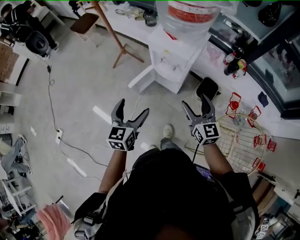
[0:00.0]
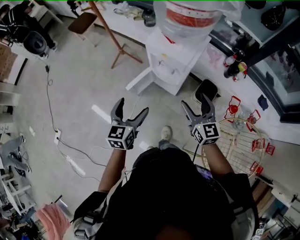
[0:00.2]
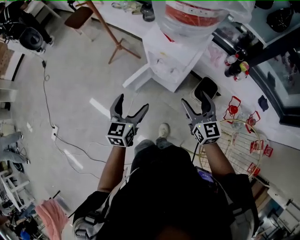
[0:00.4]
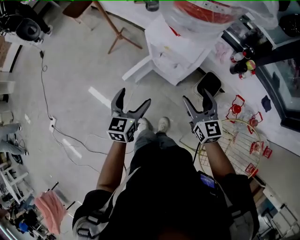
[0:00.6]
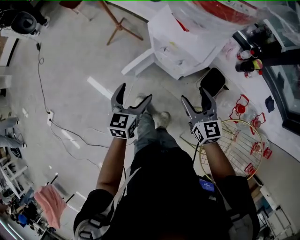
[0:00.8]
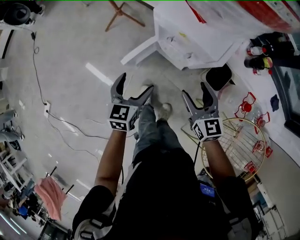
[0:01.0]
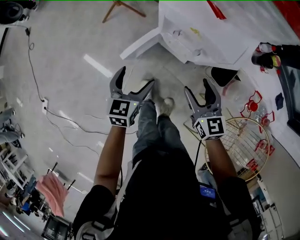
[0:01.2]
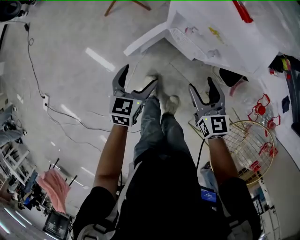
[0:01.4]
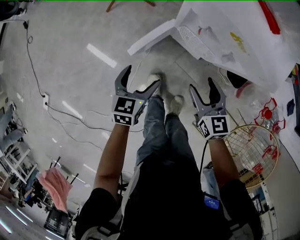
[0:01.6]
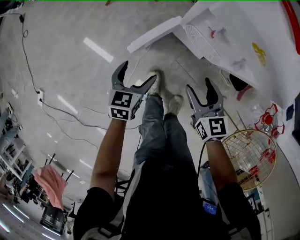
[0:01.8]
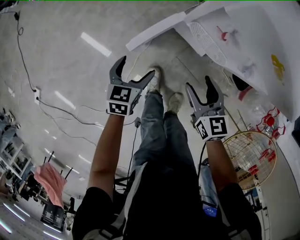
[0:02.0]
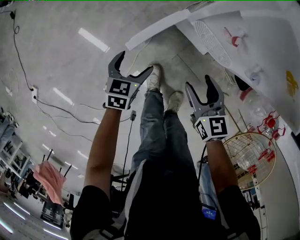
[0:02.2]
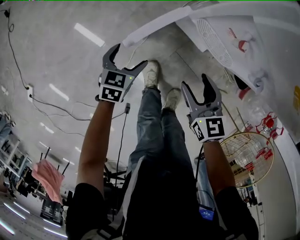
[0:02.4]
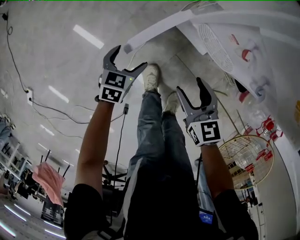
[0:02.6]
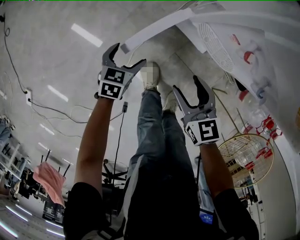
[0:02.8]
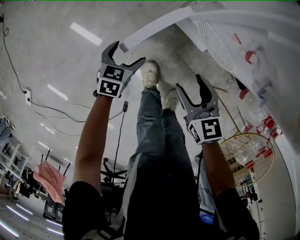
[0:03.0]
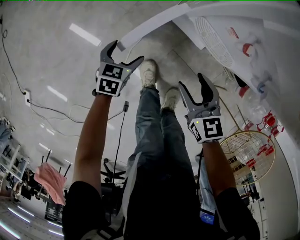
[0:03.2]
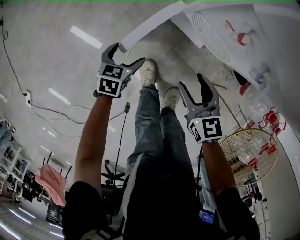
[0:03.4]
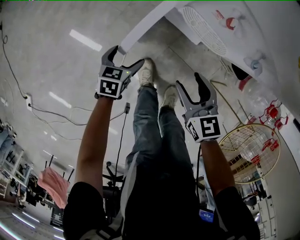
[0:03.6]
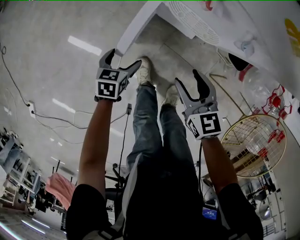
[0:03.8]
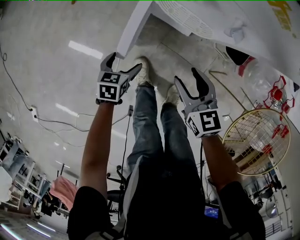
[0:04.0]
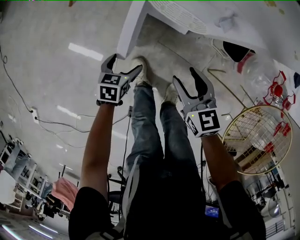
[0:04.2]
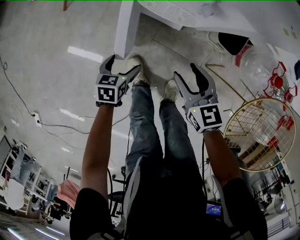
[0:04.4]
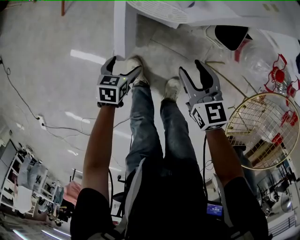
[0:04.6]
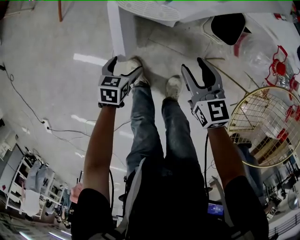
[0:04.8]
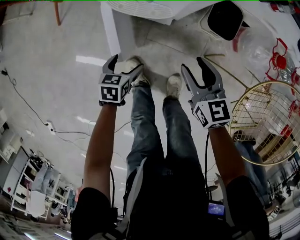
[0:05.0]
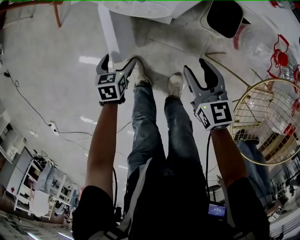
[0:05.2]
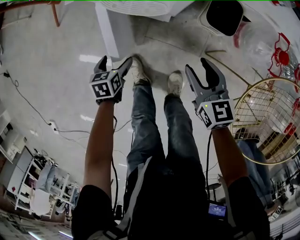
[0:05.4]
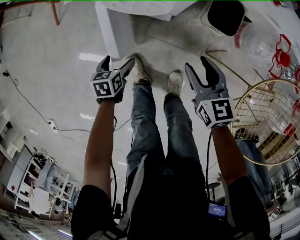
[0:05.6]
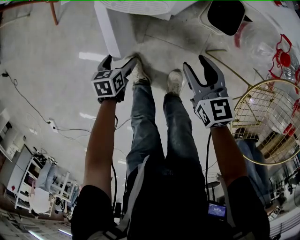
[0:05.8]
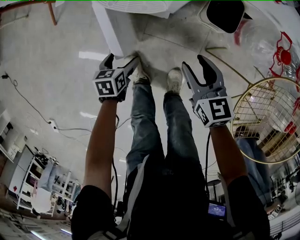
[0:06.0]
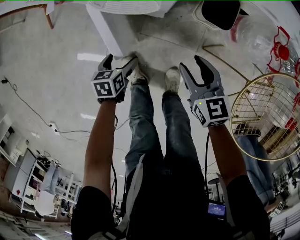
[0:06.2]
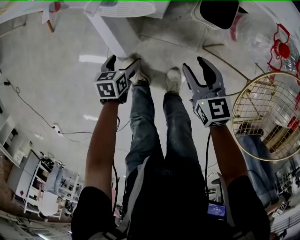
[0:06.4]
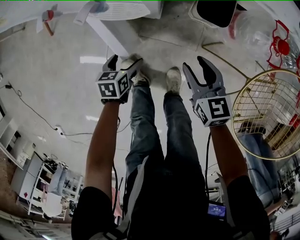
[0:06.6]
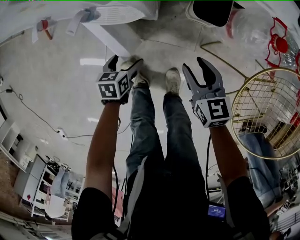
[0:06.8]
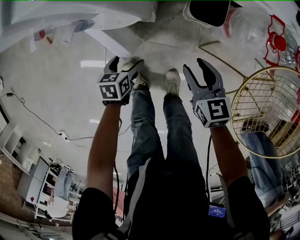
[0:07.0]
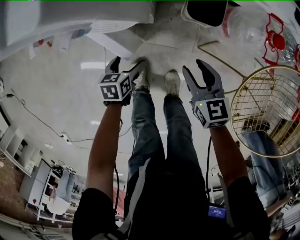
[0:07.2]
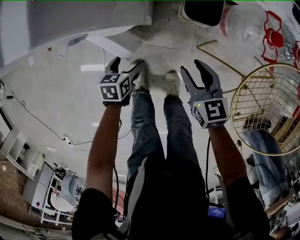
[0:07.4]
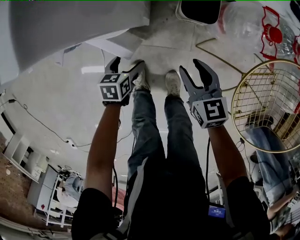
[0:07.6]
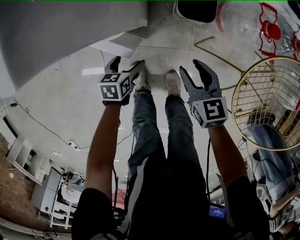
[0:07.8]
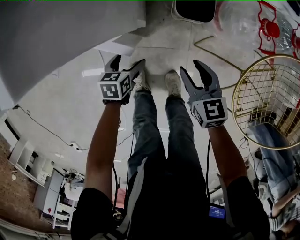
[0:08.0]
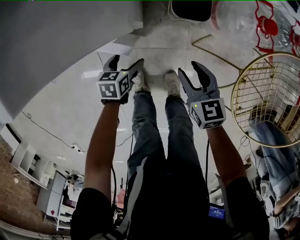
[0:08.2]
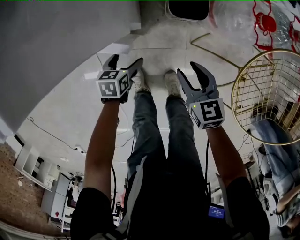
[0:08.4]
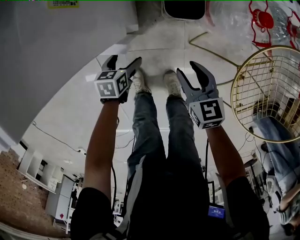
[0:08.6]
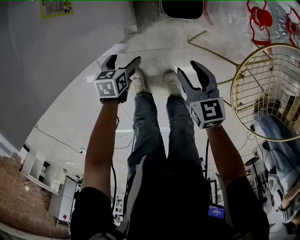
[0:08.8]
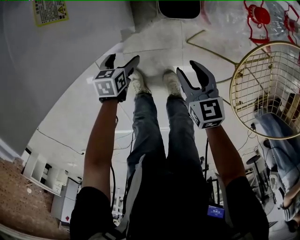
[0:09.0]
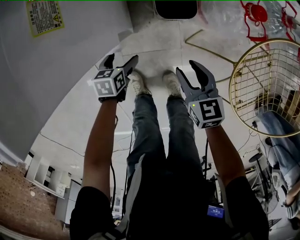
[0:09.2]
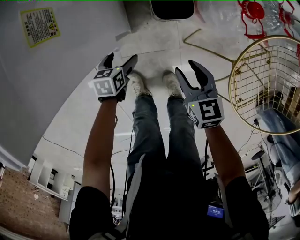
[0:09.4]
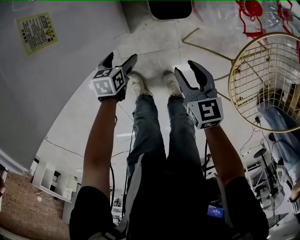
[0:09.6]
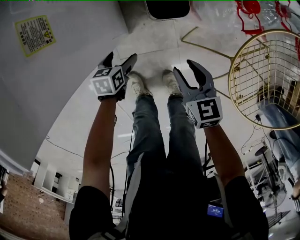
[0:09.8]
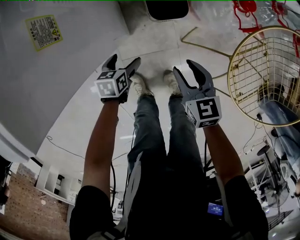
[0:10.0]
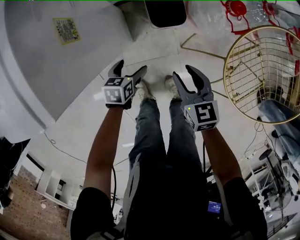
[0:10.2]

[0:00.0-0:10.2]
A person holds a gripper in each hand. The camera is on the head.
0:00.0 to 0:01.4: Both grippers move downward and forward, about 30 cm.
0:01.4 to 0:03.0: The right gripper moves downward and to the left, roughly 20 cm; the left gripper heads downward, covering approximately 25 cm.
0:03.0 to 0:04.4: Both grippers move to the right and backward, roughly 15 cm.
0:04.4 to 0:05.8: The right gripper moves to the right, some 10 cm. Meanwhile the left gripper shifts by about 5 cm.
0:05.8 to 0:07.2: The grippers both shift to the right by some 10 cm.
0:07.2 to 0:08.8: The left gripper goes about 10 cm forward.
0:08.8 to 0:10.2: The two grippers go roughly 5 cm upward.

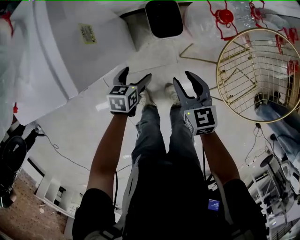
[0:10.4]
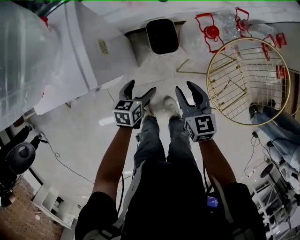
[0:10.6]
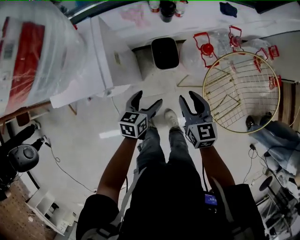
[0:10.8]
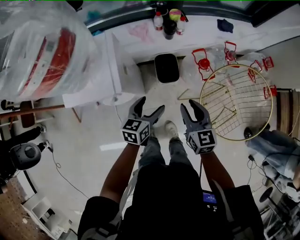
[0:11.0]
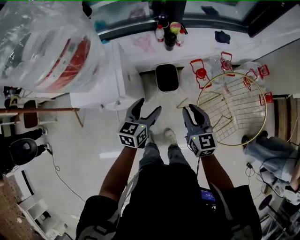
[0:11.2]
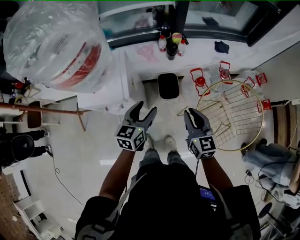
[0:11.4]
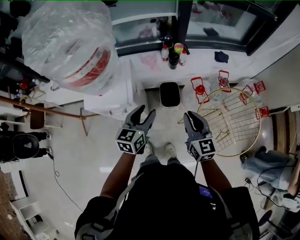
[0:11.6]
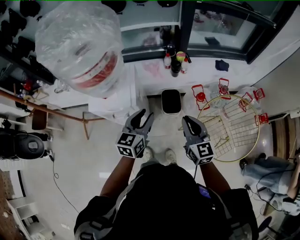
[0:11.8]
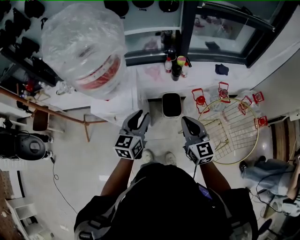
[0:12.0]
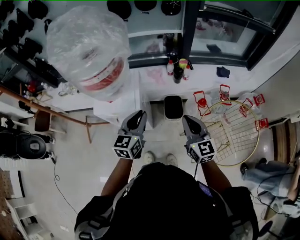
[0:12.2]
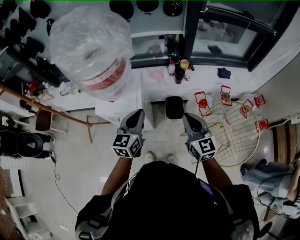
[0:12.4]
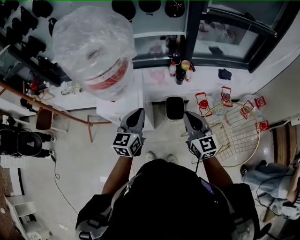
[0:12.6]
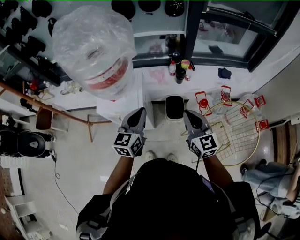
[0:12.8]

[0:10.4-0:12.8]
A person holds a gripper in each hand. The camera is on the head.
0:10.4 to 0:11.6: The two grippers go some 40 cm upward. The left gripper rotates approximately 40 degrees, and closes its fingers; the right gripper swivels some 30 degrees.
0:11.6 to 0:12.8: The left gripper heads upward and to the left, covering approximately 10 cm, and closes up. The right gripper goes some 10 cm upward.

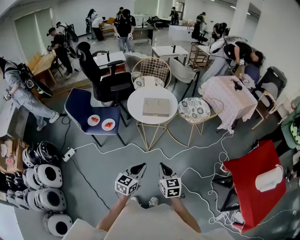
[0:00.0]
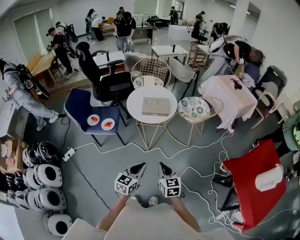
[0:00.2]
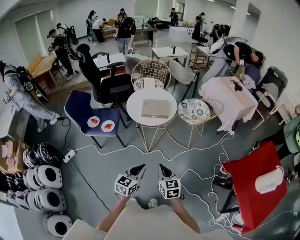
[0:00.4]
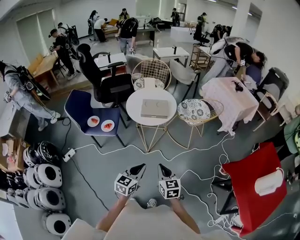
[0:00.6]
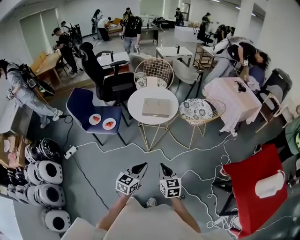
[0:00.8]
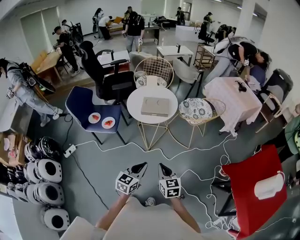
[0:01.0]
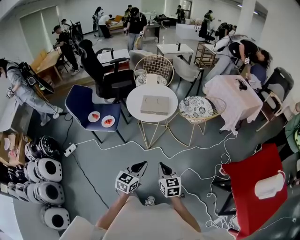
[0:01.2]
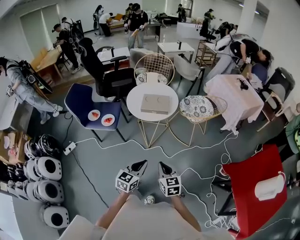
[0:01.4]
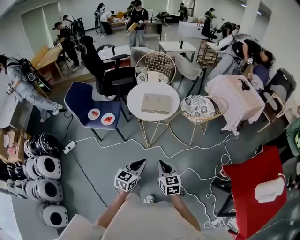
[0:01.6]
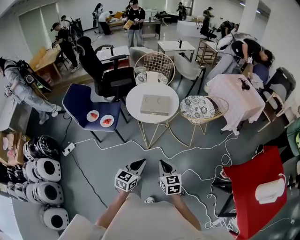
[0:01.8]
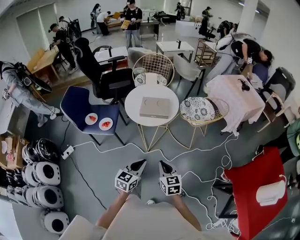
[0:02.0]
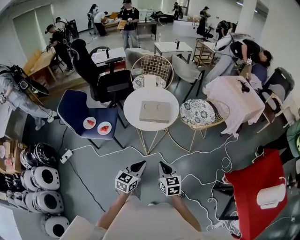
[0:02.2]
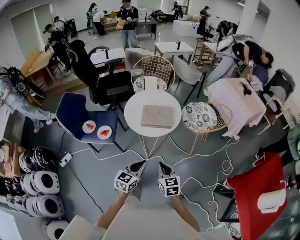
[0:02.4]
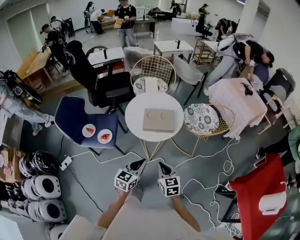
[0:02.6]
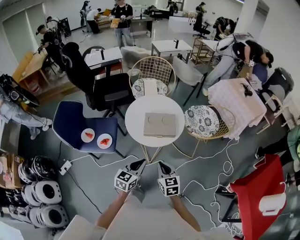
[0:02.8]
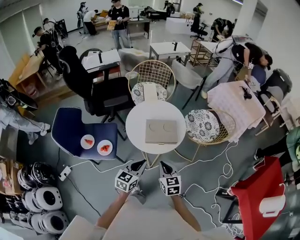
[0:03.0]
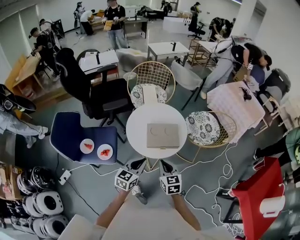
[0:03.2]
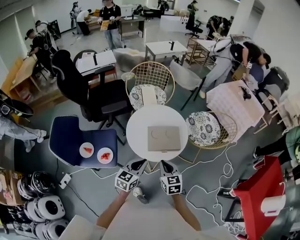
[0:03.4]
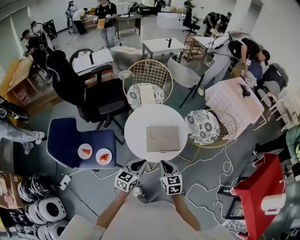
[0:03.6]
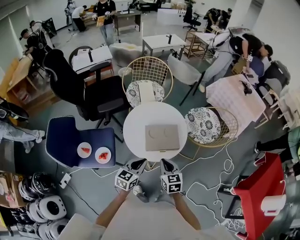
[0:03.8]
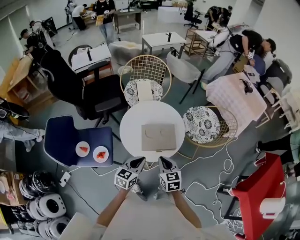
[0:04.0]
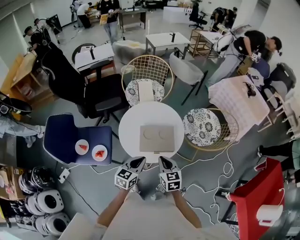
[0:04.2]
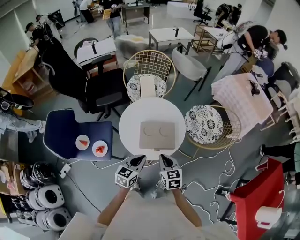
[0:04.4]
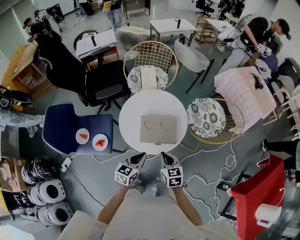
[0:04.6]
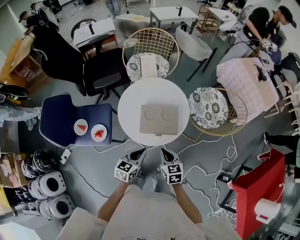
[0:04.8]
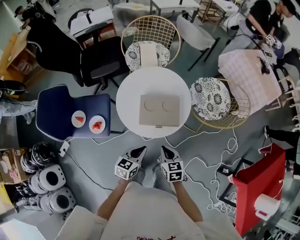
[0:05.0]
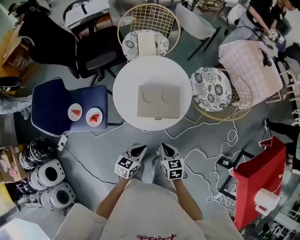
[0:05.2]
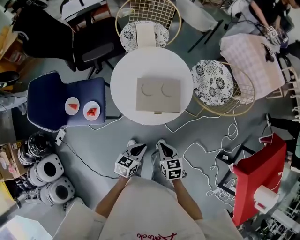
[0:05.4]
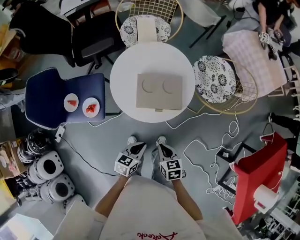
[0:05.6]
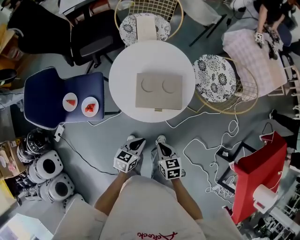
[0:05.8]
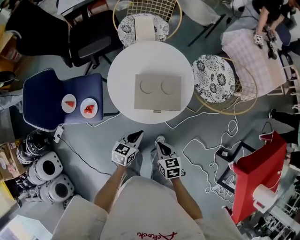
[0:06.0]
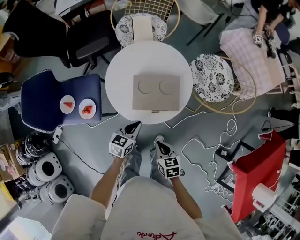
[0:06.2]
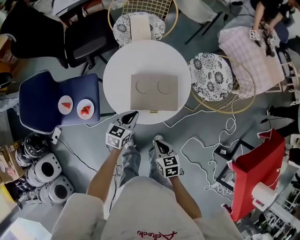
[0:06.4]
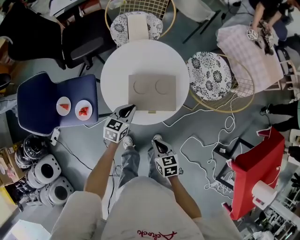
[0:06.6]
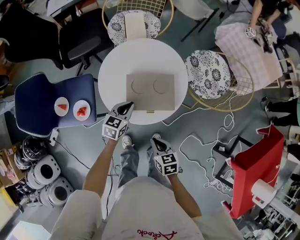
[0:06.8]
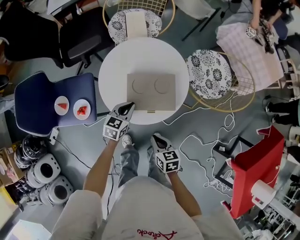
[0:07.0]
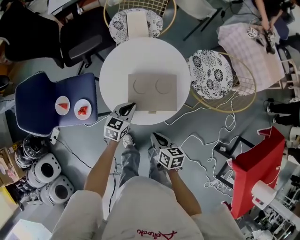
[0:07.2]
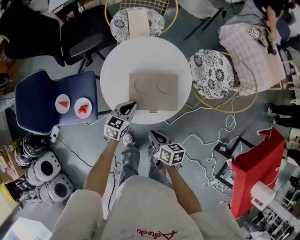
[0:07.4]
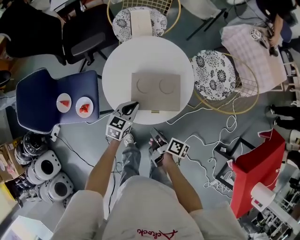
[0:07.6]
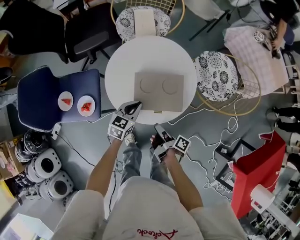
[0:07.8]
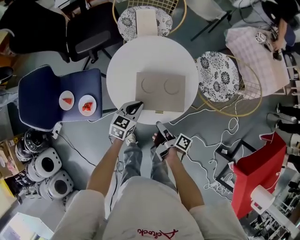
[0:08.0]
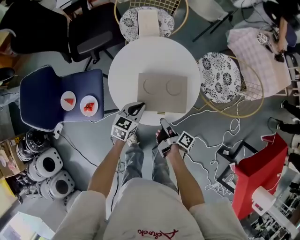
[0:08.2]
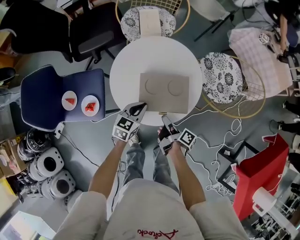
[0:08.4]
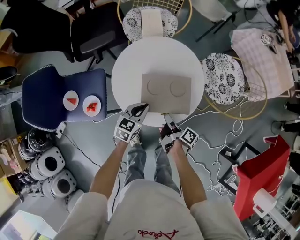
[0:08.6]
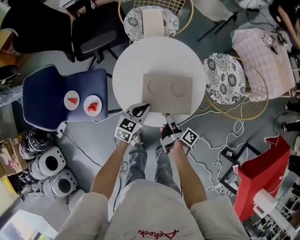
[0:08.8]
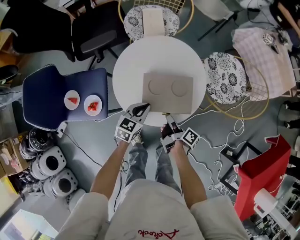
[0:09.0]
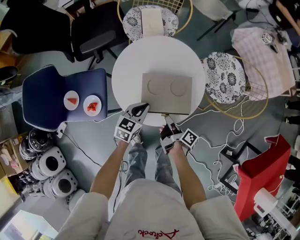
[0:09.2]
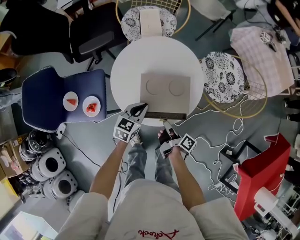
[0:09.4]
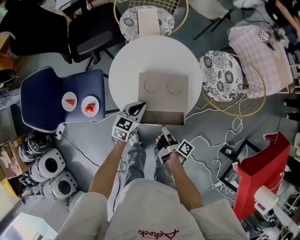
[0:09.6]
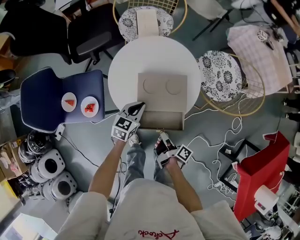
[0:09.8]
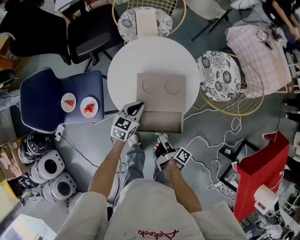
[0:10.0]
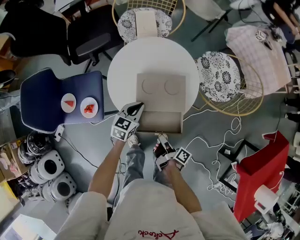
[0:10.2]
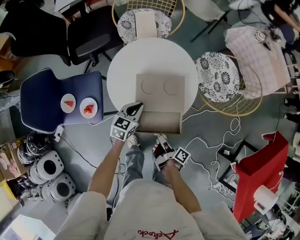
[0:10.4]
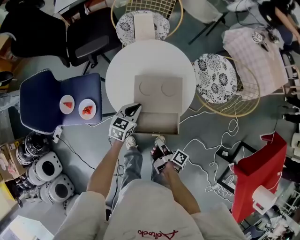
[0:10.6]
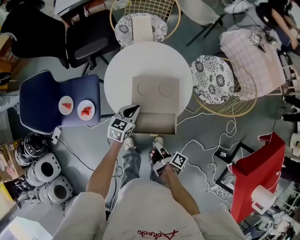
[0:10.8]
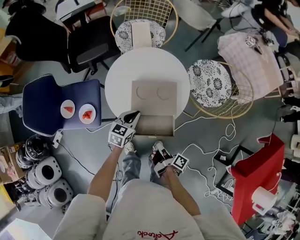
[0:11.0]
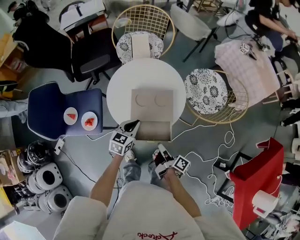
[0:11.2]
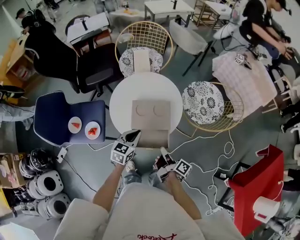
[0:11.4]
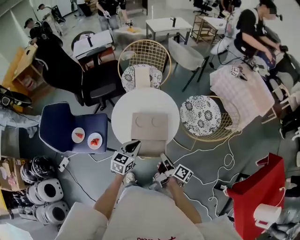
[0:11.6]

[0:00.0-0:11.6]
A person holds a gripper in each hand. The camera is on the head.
0:00.0 to 0:01.4: The left gripper is displaced to the right by approximately 5 cm, while the right gripper shifts by about 5 cm.
0:01.4 to 0:02.8: The grippers both shift forward and to the left by about 25 cm.
0:02.8 to 0:04.4: The two grippers go about 15 cm forward.
0:04.4 to 0:05.8: The two grippers go roughly 20 cm downward and backward. The right gripper changes its angle by some 20 degrees.
0:05.8 to 0:07.2: The right gripper travels forward by approximately 5 cm, and rotates about 20 degrees, while the left gripper moves forward, approximately 20 cm.
0:07.2 to 0:08.8: The right gripper is displaced forward by roughly 10 cm, rotates around the line of its fingers by about 50 degrees, clockwise from behind, and opens and closes again.
0:08.8 to 0:10.2: The right gripper moves backward, roughly 10 cm.
0:10.2 to 0:11.6: The right gripper moves upward and to the right, approximately 15 cm, and swivels approximately 20 degrees. Meanwhile the left gripper goes roughly 15 cm upward and backward.
